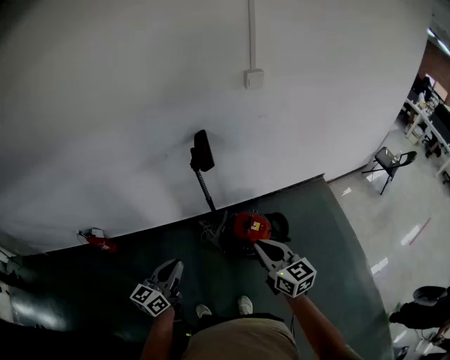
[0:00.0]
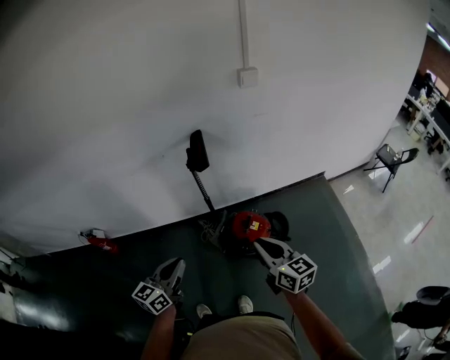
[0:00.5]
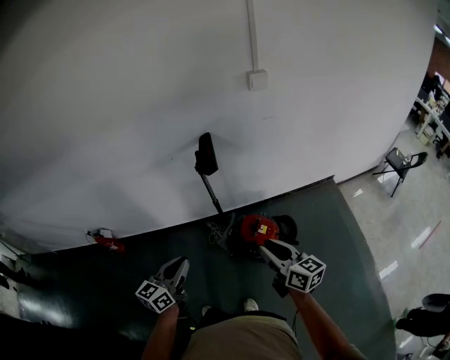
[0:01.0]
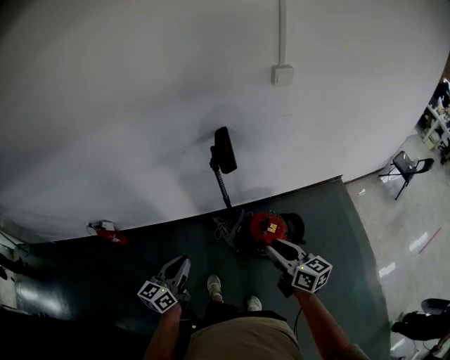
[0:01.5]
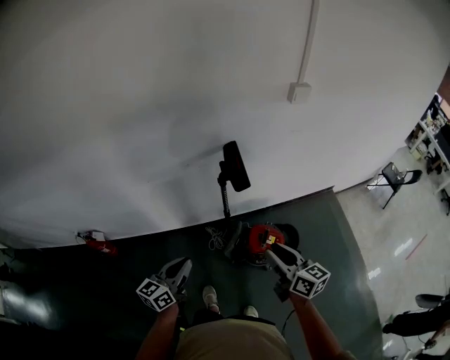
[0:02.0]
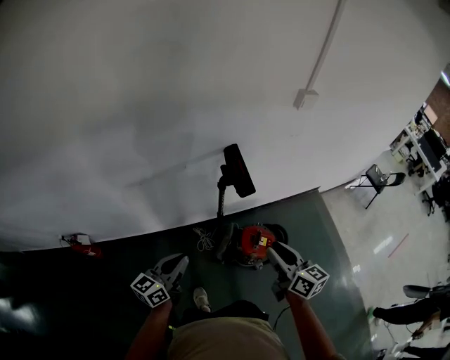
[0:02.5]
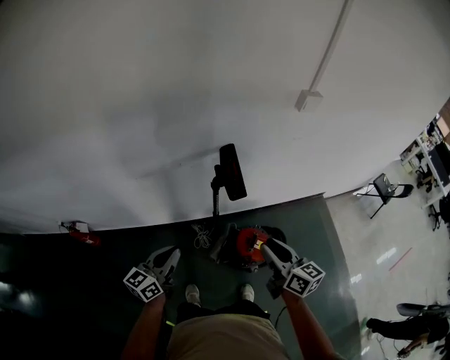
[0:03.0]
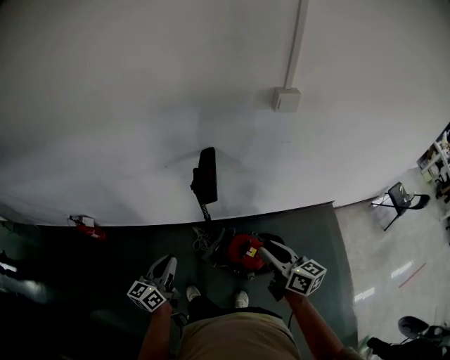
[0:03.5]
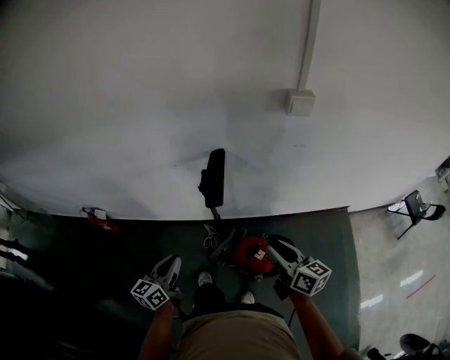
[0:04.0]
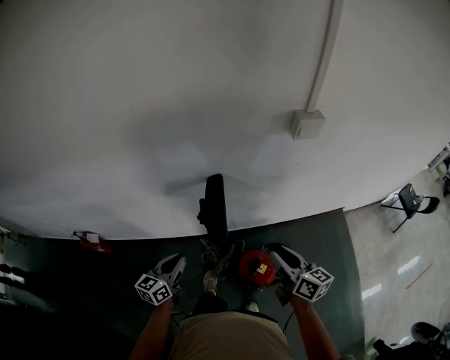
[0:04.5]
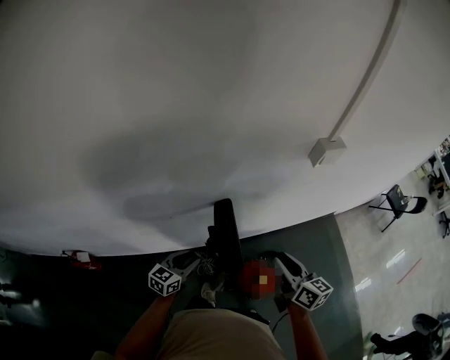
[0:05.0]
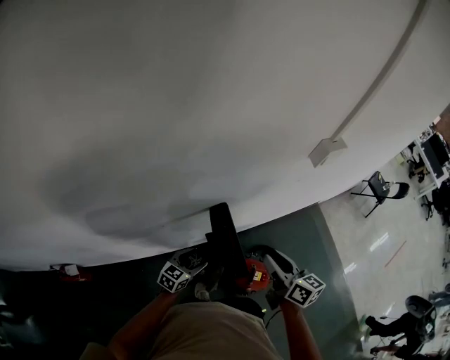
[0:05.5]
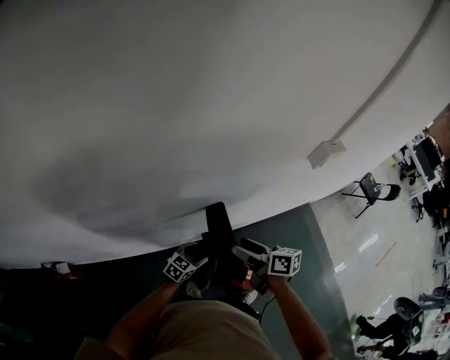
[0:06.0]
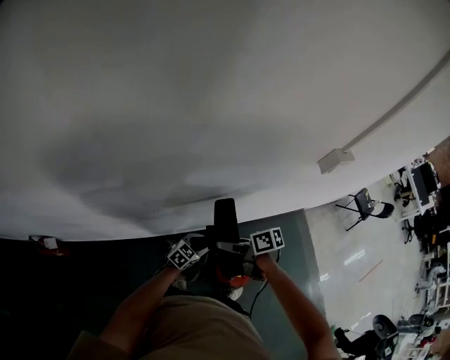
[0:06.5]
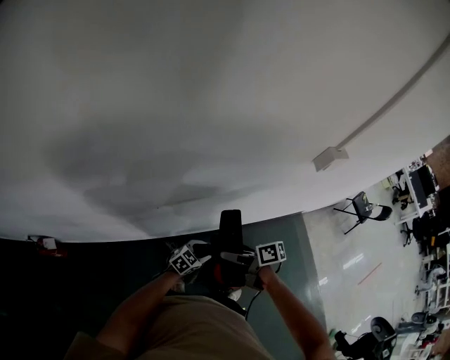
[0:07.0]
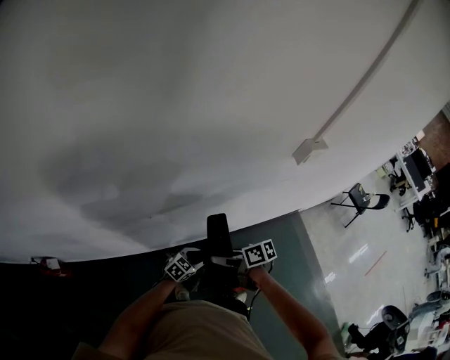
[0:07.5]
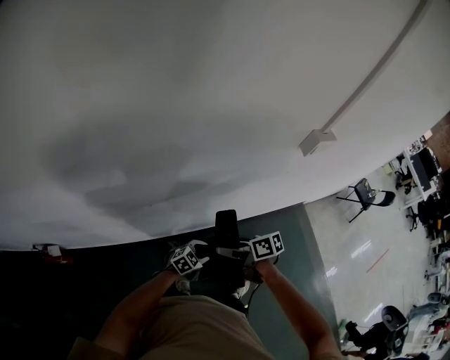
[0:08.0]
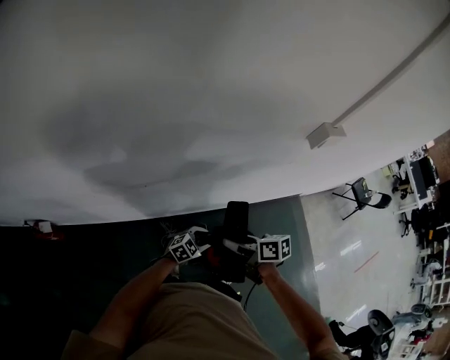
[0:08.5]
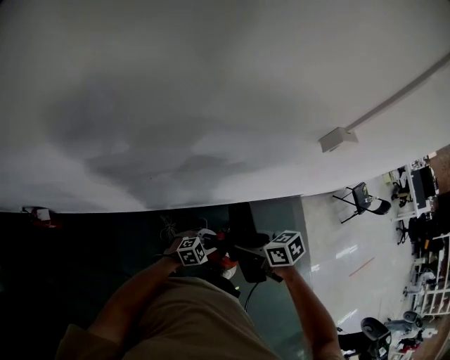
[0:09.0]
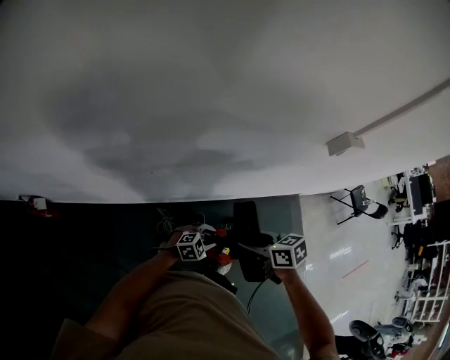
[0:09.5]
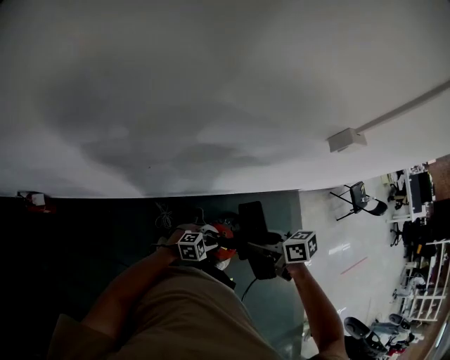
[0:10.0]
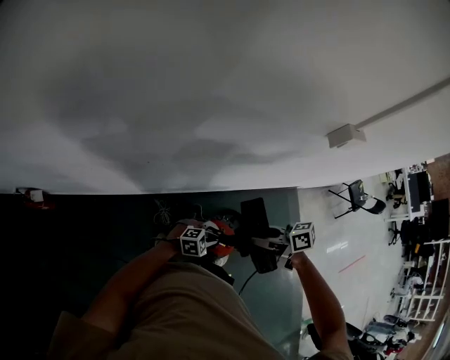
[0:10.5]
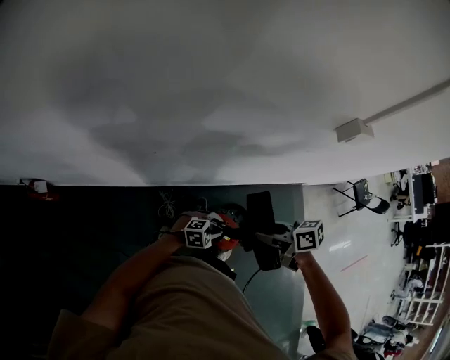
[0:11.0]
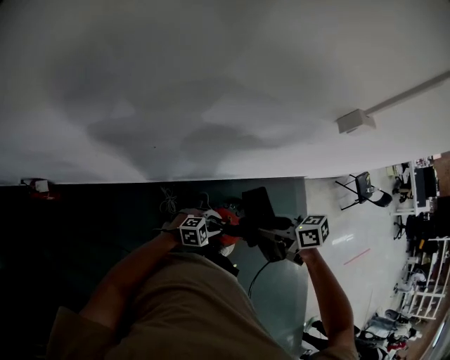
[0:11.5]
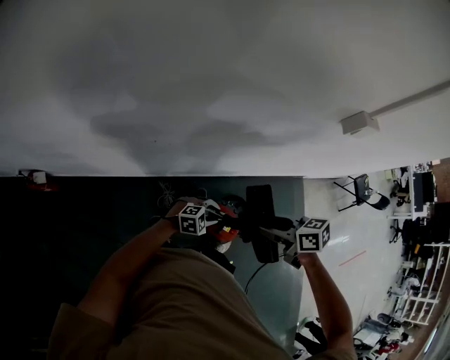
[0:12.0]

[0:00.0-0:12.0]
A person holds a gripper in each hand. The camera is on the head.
0:00.0 to 0:02.0: Both grippers travel together forward and to the left, approximately 15 cm.
0:02.0 to 0:04.0: Both grippers move to the right and forward, about 15 cm. The left gripper changes its angle by about 20 degrees.
0:04.0 to 0:06.0: The right gripper moves approximately 30 cm, changes its angle by about 20 degrees, and opens; the left gripper ends up roughly 40 cm from where it was, turns by some 60 degrees, and opens.
0:06.0 to 0:08.0: The left gripper changes place by approximately 10 cm, while the right gripper changes place by roughly 10 cm, and rotates roughly 20 degrees.
0:08.0 to 0:10.0: The right gripper changes place by about 10 cm, and swivels about 20 degrees. Meanwhile the left gripper ends up some 10 cm from where it was.
0:10.0 to 0:12.0: There are only small adjustments of the grippers.

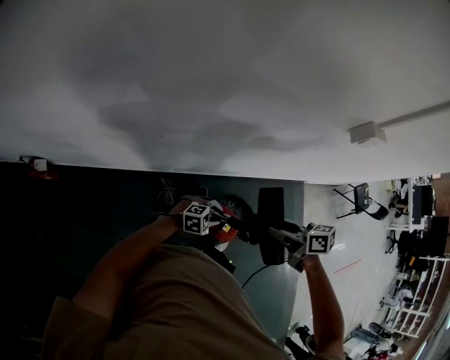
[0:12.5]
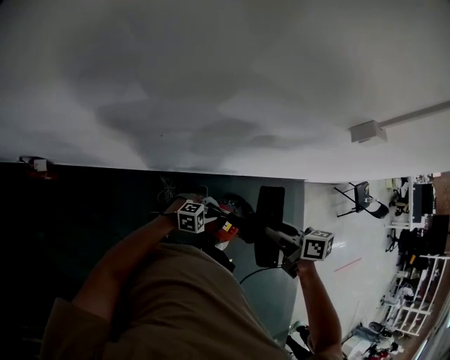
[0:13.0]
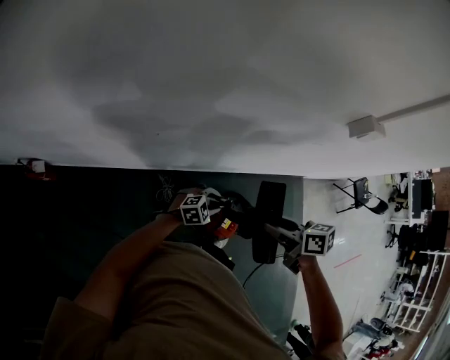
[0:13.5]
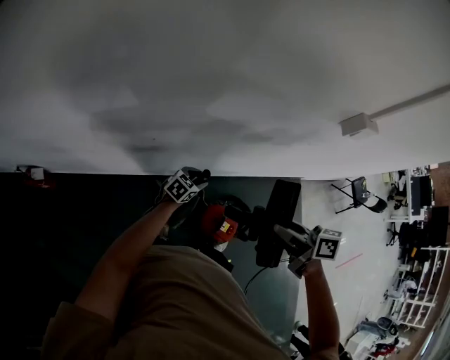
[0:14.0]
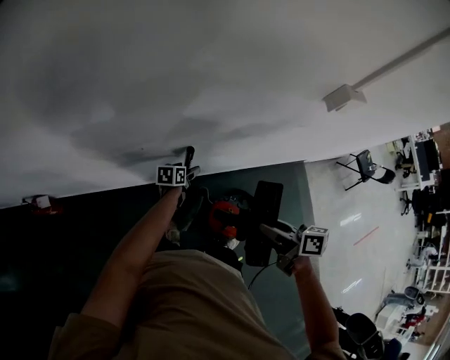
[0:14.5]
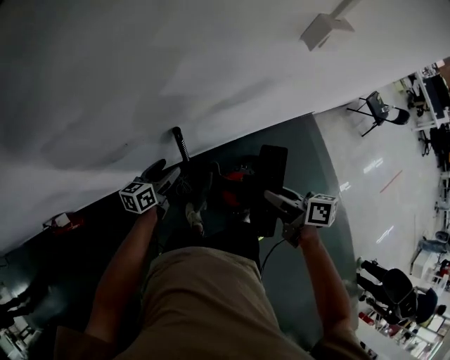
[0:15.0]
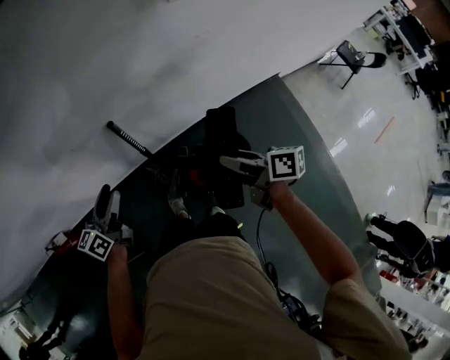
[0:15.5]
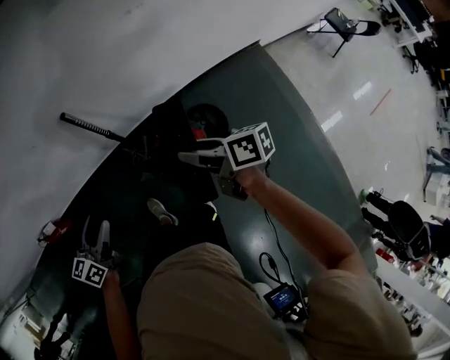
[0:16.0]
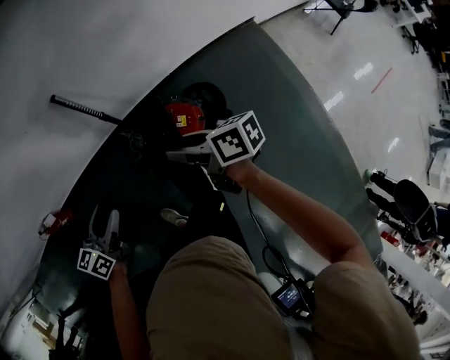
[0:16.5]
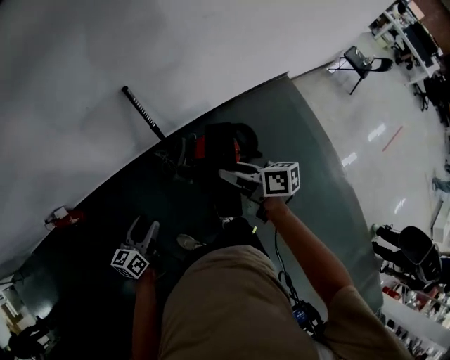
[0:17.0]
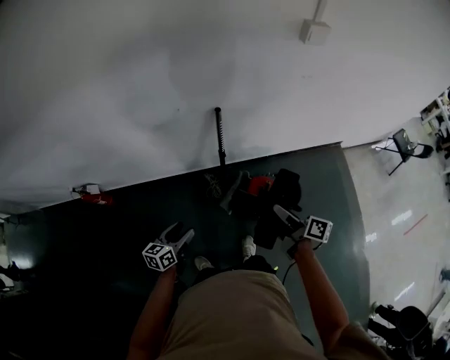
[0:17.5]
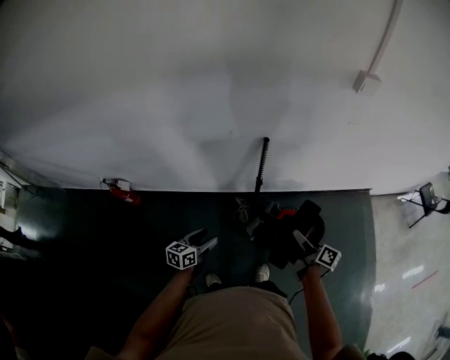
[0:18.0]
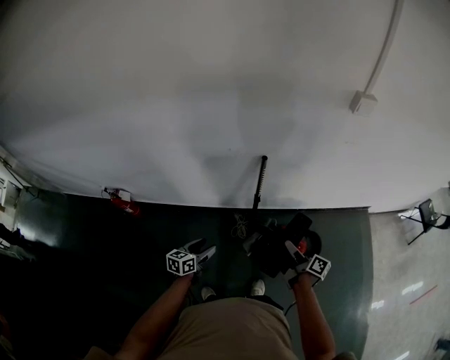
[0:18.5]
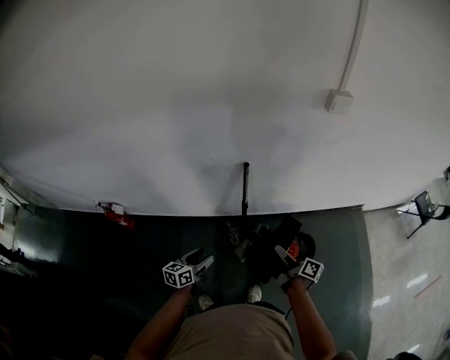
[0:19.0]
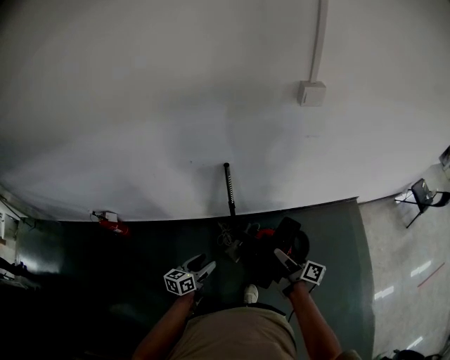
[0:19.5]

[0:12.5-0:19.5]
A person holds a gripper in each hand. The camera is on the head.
0:12.5 to 0:14.5: The left gripper shifts by roughly 25 cm, rotates around the line of its fingers by about 70 degrees, counterclockwise from behind, and opens, while the right gripper rotates some 20 degrees.
0:14.5 to 0:16.0: The right gripper shifts about 20 cm to the right, backward and downward; the left gripper heads backward and upward, covering roughly 40 cm, and swivels about 20 degrees.
0:16.0 to 0:17.5: The left gripper travels to the left, backward and downward by approximately 25 cm. Meanwhile the right gripper is displaced to the left and backward by some 20 cm.
0:17.5 to 0:19.5: The left gripper shifts about 10 cm to the right, while the right gripper shifts approximately 5 cm to the right.

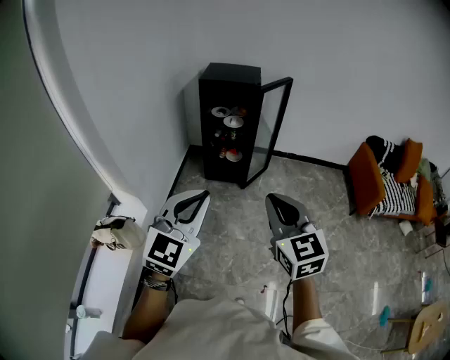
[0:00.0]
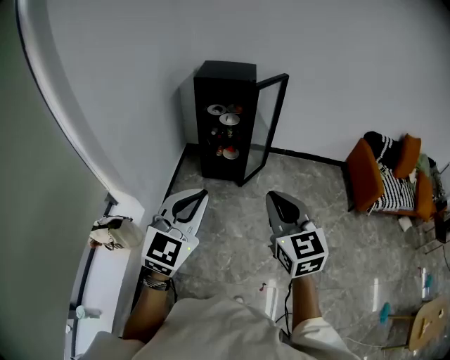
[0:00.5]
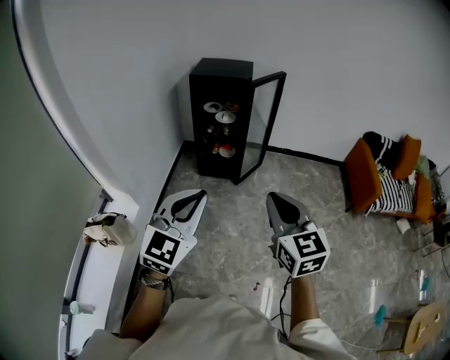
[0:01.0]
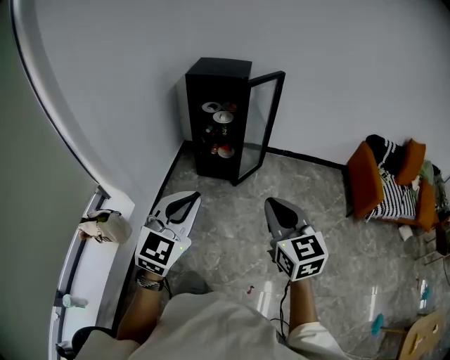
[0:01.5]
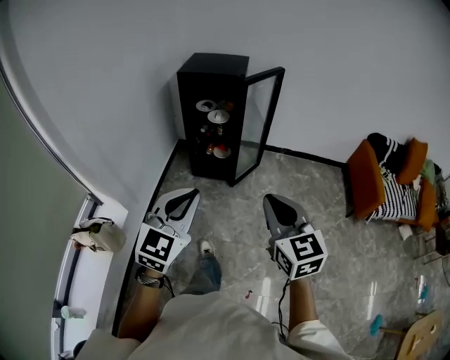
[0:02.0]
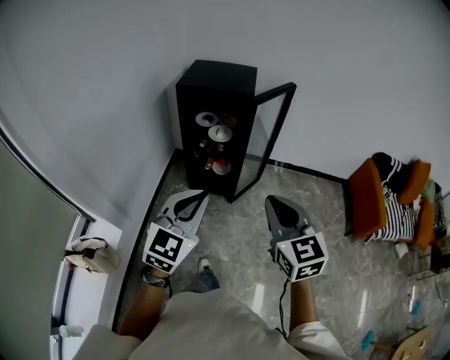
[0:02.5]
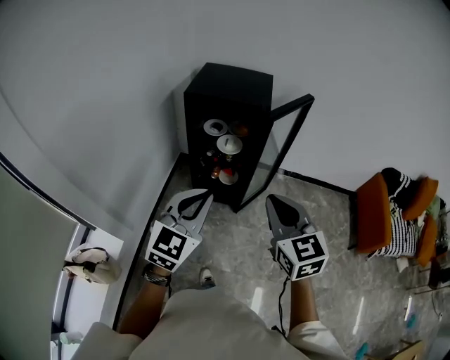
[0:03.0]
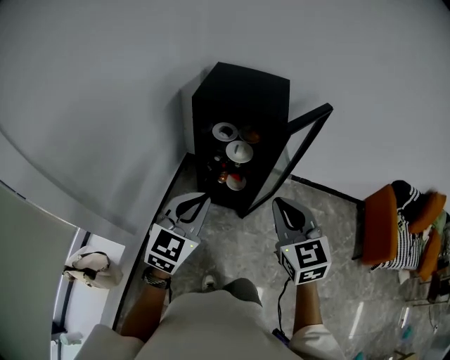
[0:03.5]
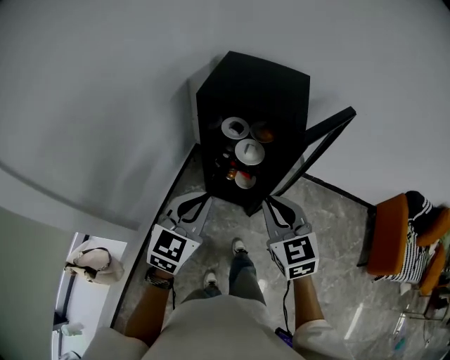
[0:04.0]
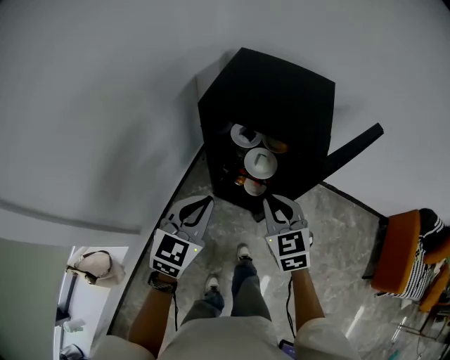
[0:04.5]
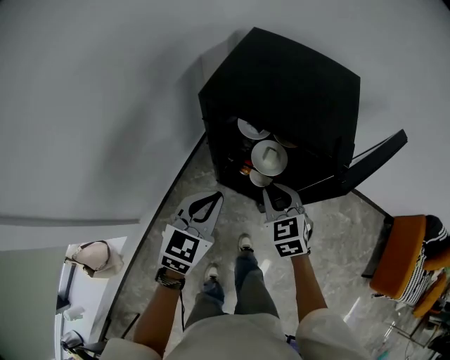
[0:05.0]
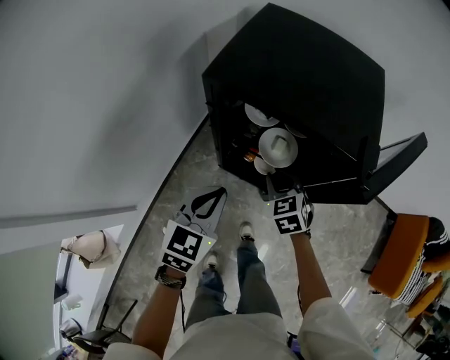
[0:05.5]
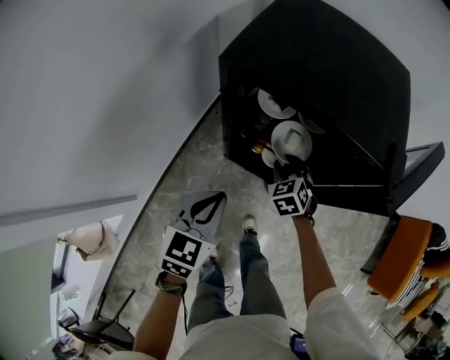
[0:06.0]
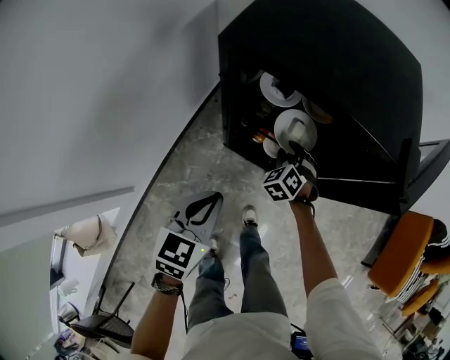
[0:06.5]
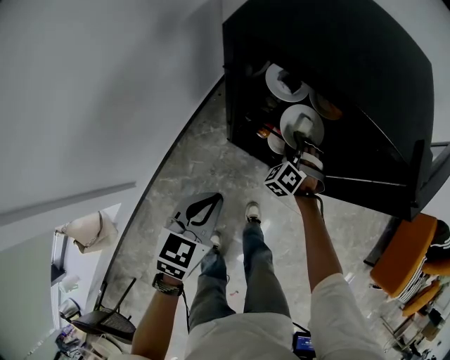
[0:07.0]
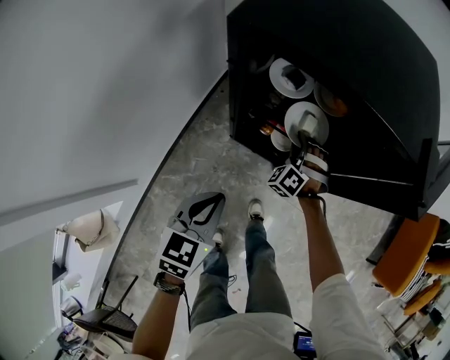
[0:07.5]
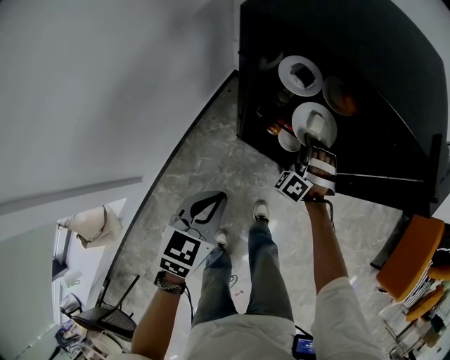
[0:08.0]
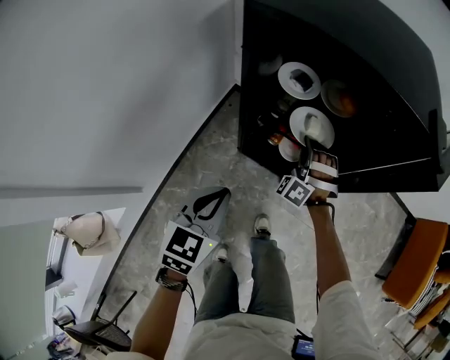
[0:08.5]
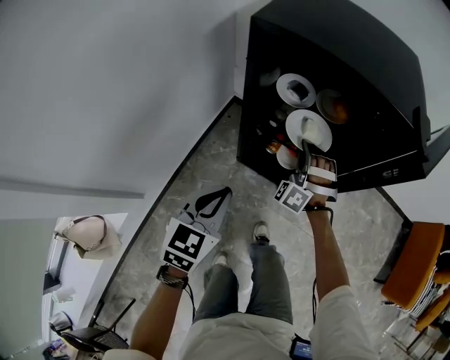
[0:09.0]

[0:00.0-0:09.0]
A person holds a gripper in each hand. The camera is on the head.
0:00.0 to 0:02.0: Both grippers travel together forward, to the right and downward, about 15 cm.
0:02.0 to 0:04.5: The pair of grippers is taken forward, roughly 60 cm. The right gripper rotates some 20 degrees, while the left gripper turns by some 20 degrees.
0:04.5 to 0:07.0: The right gripper is displaced downward and forward by approximately 35 cm, rolls counterclockwise, seen from behind, by approximately 50 degrees, and opens its fingers. Meanwhile the left gripper goes roughly 20 cm downward, and swivels some 20 degrees.
0:07.0 to 0:09.0: The right gripper goes approximately 10 cm upward, swivels some 30 degrees, and closes up.
